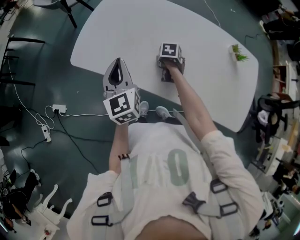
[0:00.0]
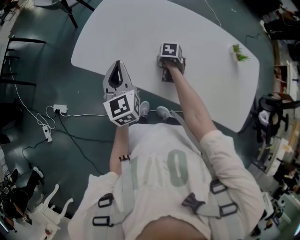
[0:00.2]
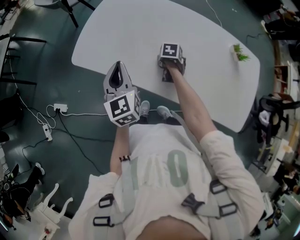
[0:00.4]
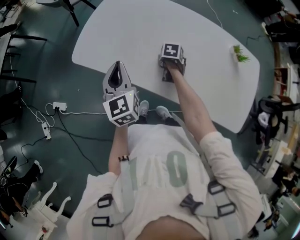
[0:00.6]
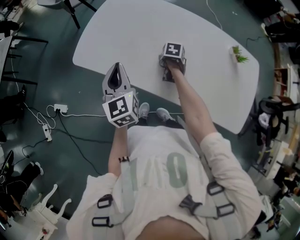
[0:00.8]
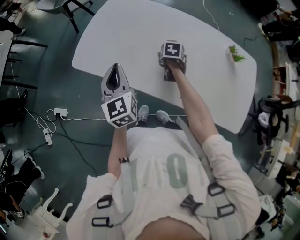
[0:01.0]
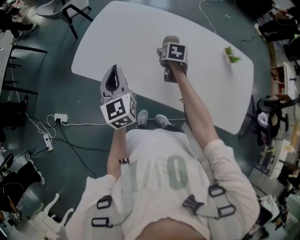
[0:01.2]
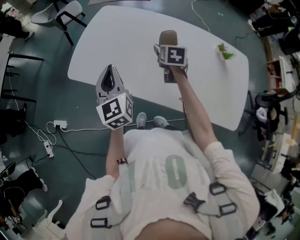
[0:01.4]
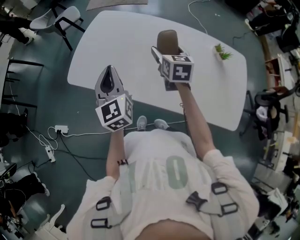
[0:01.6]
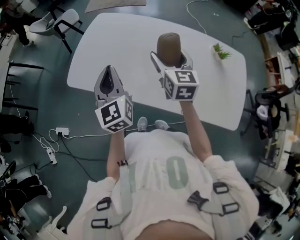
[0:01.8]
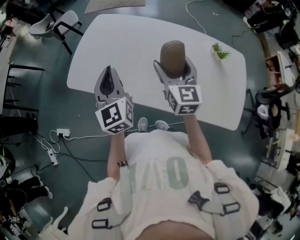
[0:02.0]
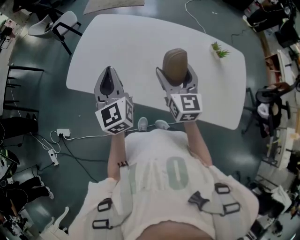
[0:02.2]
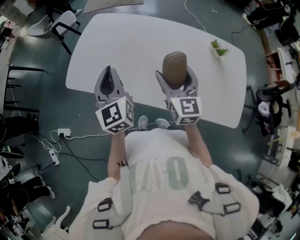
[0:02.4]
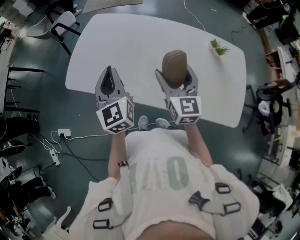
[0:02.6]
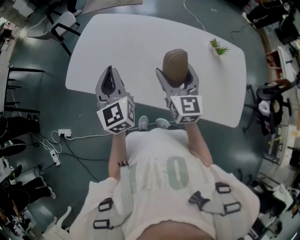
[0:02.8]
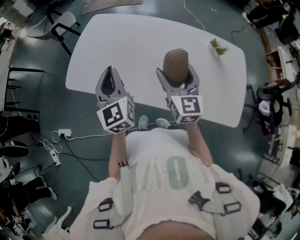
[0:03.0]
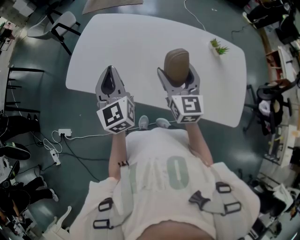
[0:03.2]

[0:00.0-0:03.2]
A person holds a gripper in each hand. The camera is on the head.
0.0 to 1.6 s: The right gripper is displaced upward by roughly 25 cm, and tips its fingers upward by about 50 degrees. The left gripper moves upward, approximately 5 cm.
1.6 to 3.2 s: The right gripper travels backward and upward by approximately 15 cm, and swivels some 20 degrees.

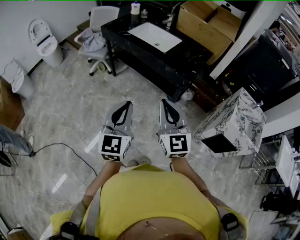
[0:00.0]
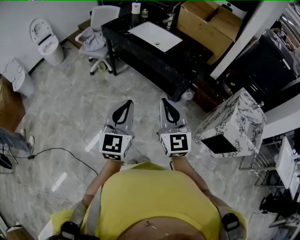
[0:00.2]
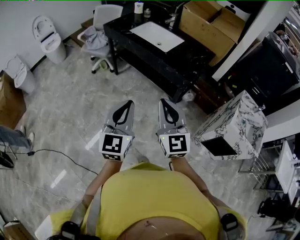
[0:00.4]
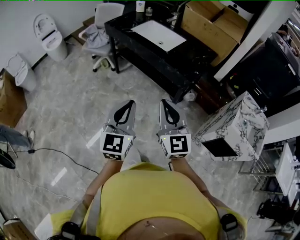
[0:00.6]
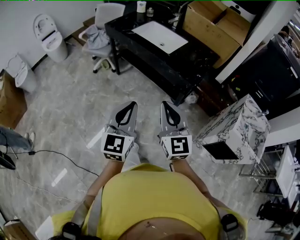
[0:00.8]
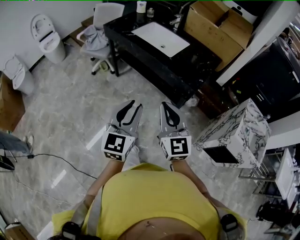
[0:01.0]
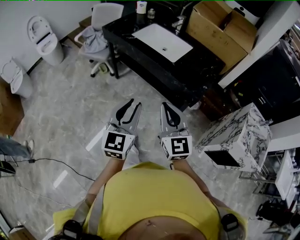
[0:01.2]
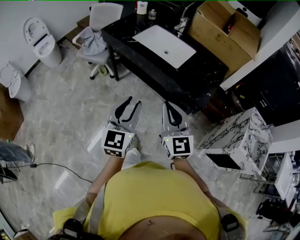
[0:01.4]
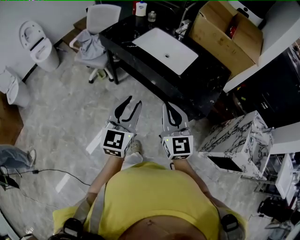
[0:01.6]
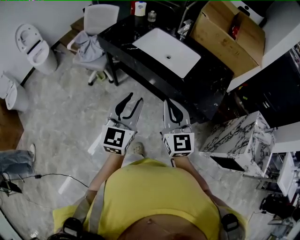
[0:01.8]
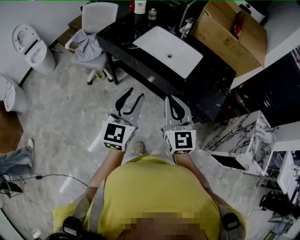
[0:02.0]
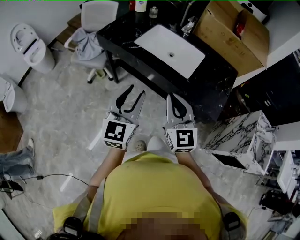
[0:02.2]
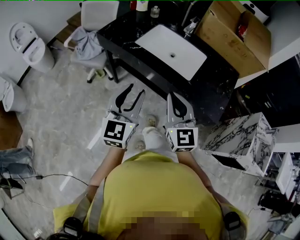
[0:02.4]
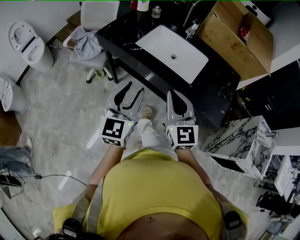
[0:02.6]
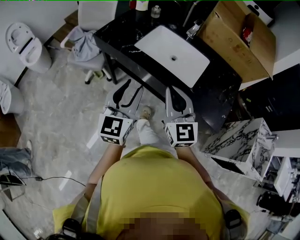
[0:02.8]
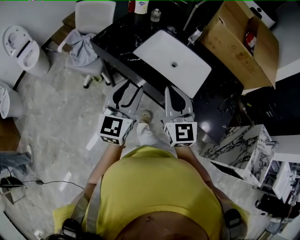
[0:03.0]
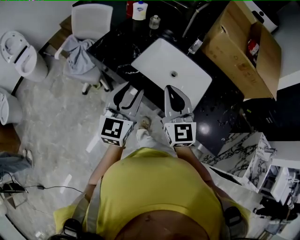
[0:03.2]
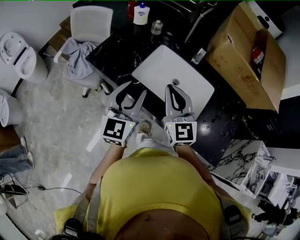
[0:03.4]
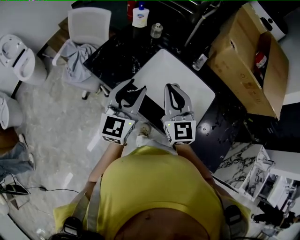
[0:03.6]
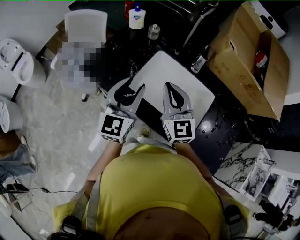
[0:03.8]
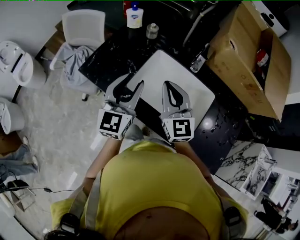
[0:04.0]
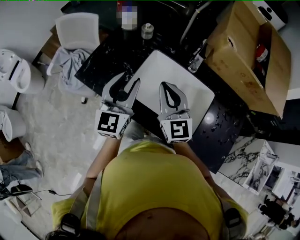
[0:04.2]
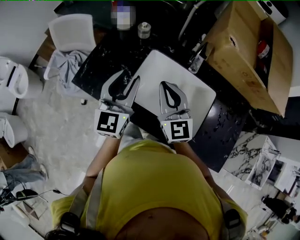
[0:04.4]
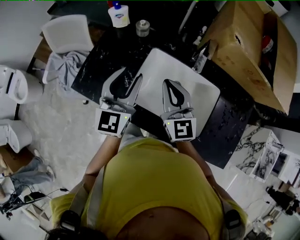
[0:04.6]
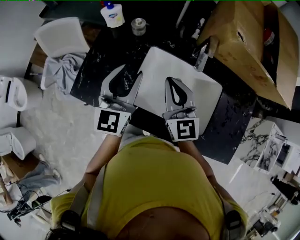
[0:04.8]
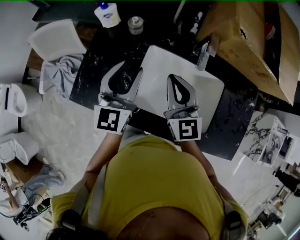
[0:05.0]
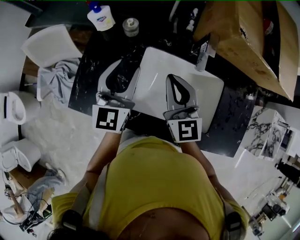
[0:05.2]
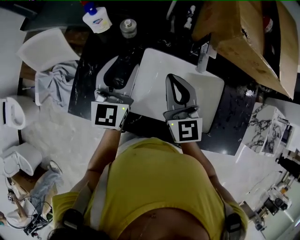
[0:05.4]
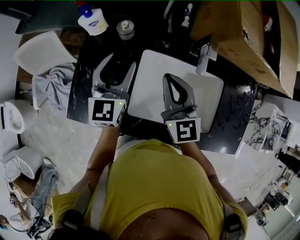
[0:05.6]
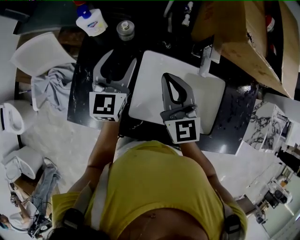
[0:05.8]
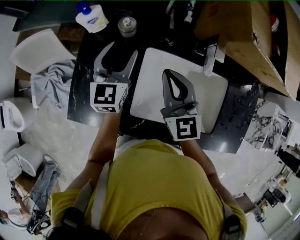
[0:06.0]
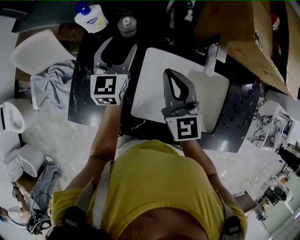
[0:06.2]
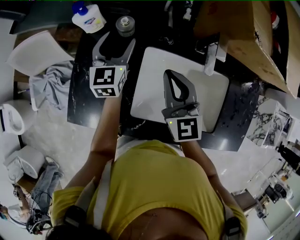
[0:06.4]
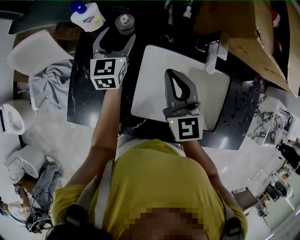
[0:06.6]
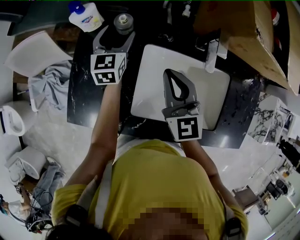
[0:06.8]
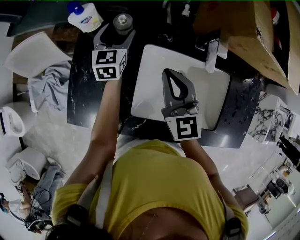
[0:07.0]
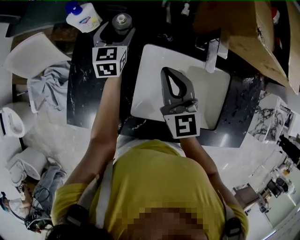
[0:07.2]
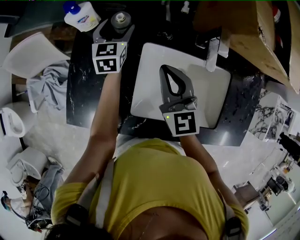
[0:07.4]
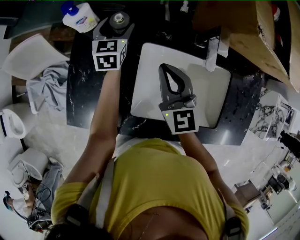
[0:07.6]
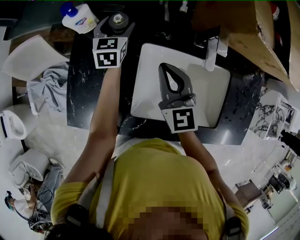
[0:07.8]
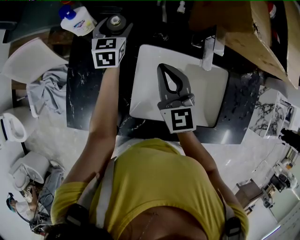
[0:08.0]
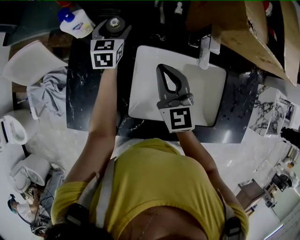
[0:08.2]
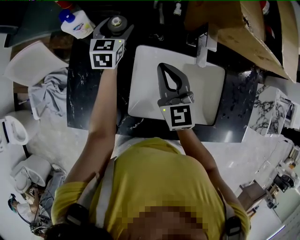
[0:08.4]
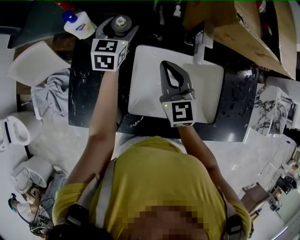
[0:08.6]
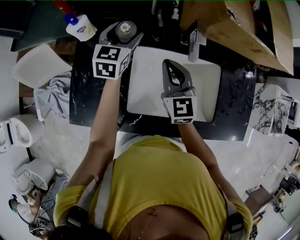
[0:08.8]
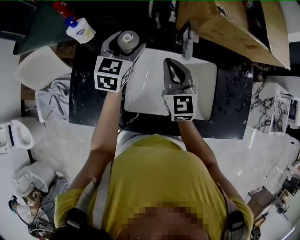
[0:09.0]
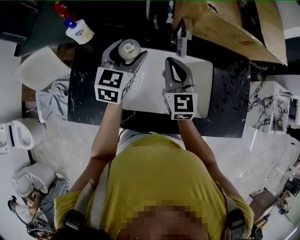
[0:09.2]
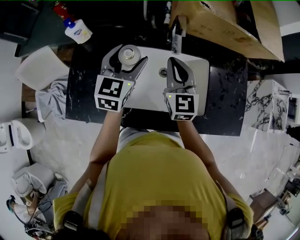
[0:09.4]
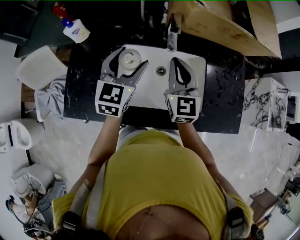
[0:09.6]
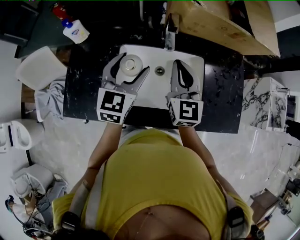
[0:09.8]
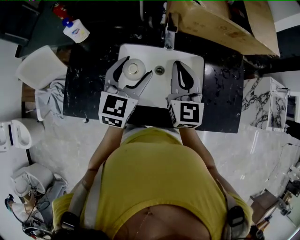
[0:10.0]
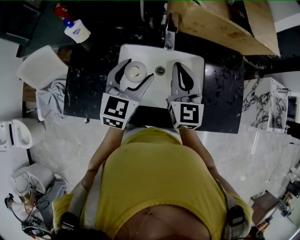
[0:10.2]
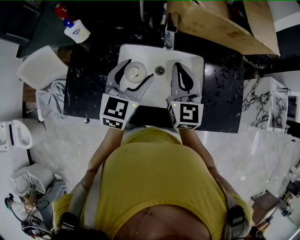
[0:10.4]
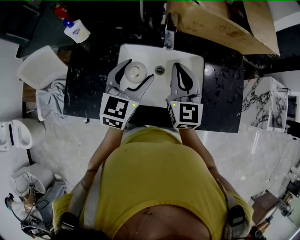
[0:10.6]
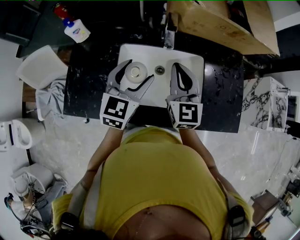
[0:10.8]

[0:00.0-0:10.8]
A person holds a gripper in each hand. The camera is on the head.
0.0 to 1.6 s: Both grippers travel together forward, some 30 cm. The left gripper opens.
1.6 to 3.0 s: The grippers both shift forward by about 25 cm.
3.0 to 4.6 s: The grippers both shift forward by roughly 35 cm.
4.6 to 6.2 s: The left gripper travels forward and downward by approximately 25 cm. The right gripper travels forward by roughly 10 cm.
6.2 to 7.8 s: The left gripper shifts about 15 cm forward and downward.
7.8 to 9.2 s: The right gripper shifts some 10 cm to the right, while the left gripper moves backward, upward and to the right, roughly 25 cm.
9.2 to 10.8 s: The right gripper moves to the right and backward, roughly 10 cm, while the left gripper is displaced backward and to the right by approximately 15 cm.

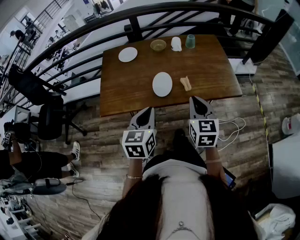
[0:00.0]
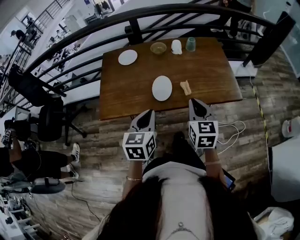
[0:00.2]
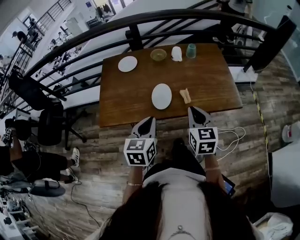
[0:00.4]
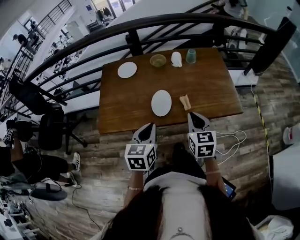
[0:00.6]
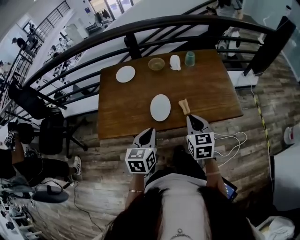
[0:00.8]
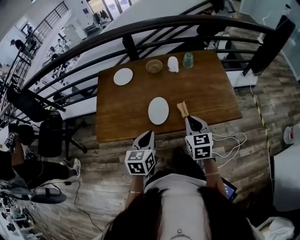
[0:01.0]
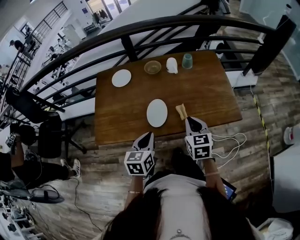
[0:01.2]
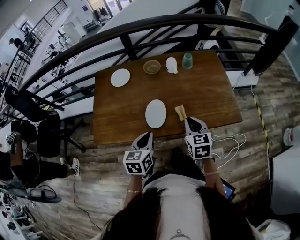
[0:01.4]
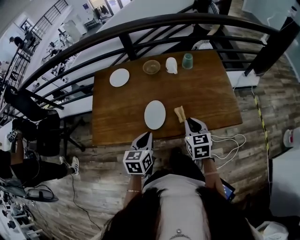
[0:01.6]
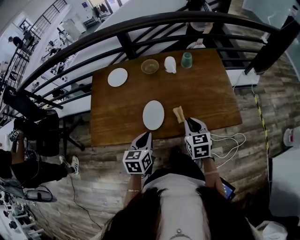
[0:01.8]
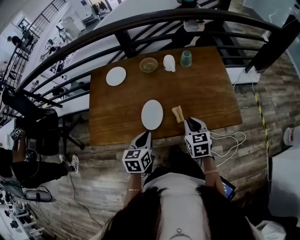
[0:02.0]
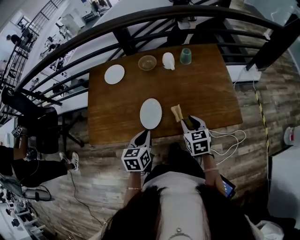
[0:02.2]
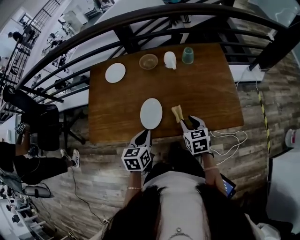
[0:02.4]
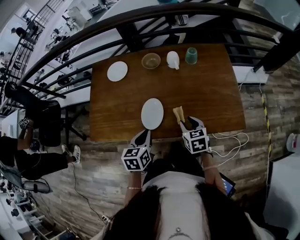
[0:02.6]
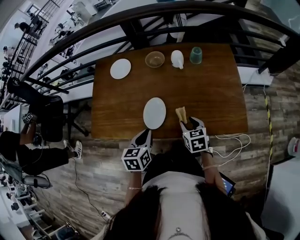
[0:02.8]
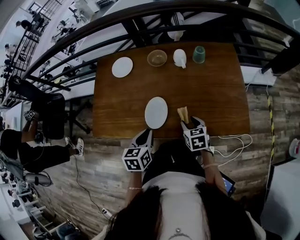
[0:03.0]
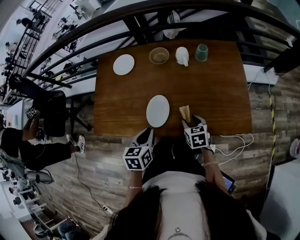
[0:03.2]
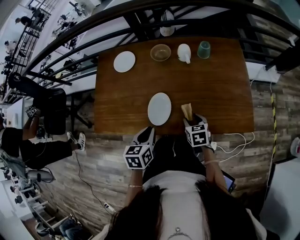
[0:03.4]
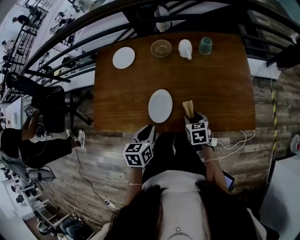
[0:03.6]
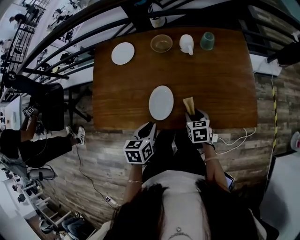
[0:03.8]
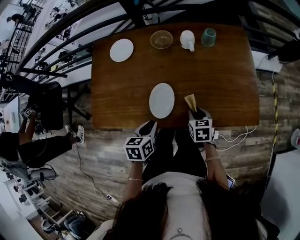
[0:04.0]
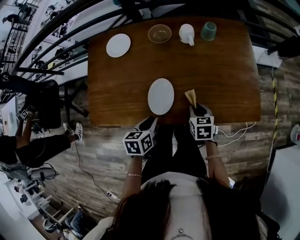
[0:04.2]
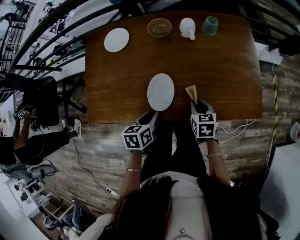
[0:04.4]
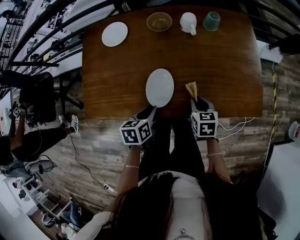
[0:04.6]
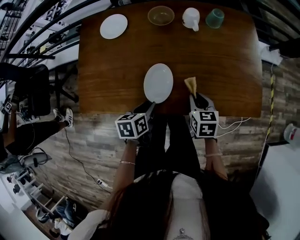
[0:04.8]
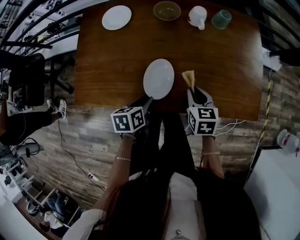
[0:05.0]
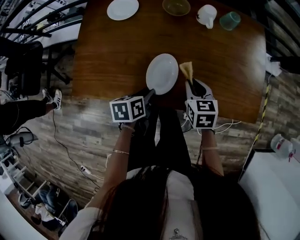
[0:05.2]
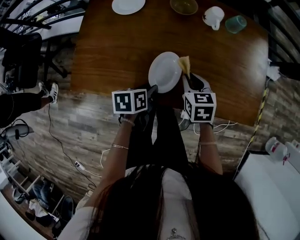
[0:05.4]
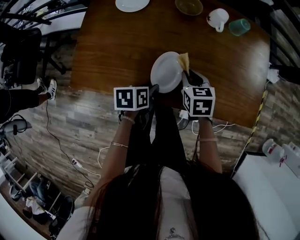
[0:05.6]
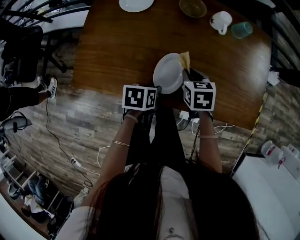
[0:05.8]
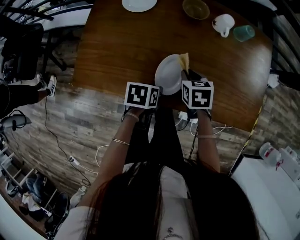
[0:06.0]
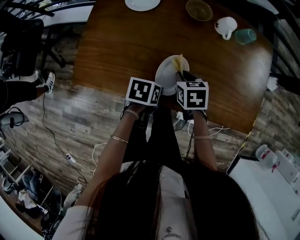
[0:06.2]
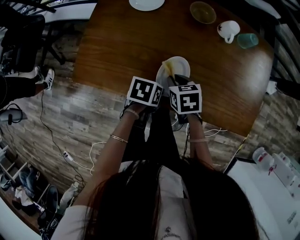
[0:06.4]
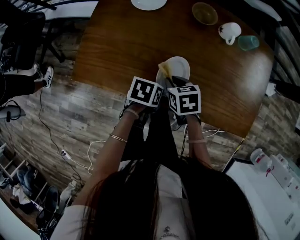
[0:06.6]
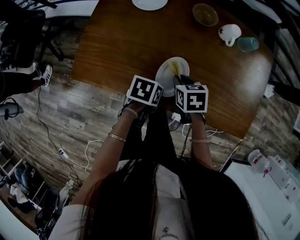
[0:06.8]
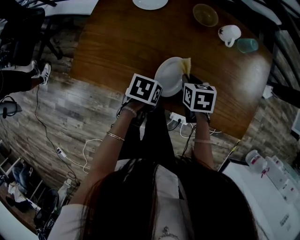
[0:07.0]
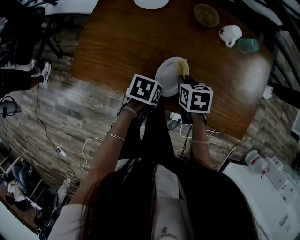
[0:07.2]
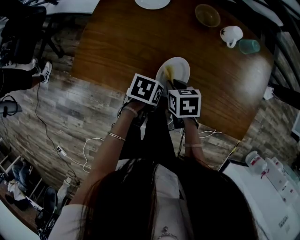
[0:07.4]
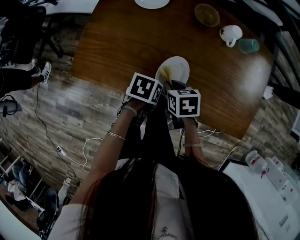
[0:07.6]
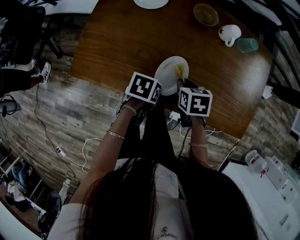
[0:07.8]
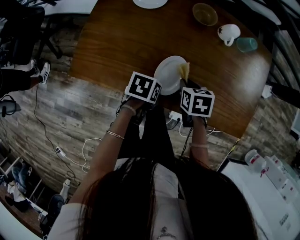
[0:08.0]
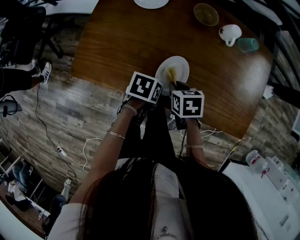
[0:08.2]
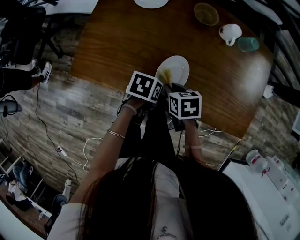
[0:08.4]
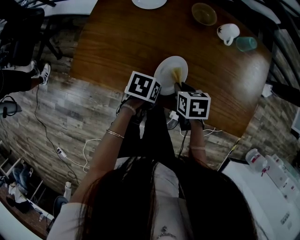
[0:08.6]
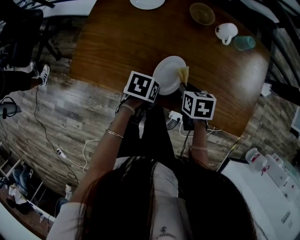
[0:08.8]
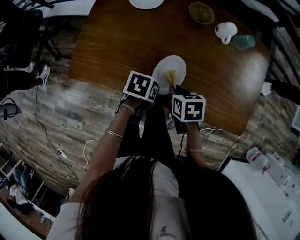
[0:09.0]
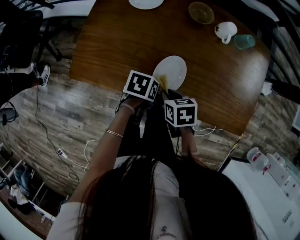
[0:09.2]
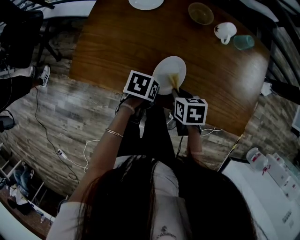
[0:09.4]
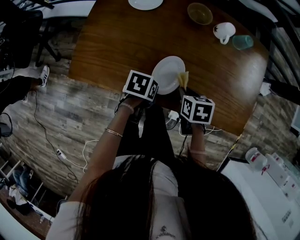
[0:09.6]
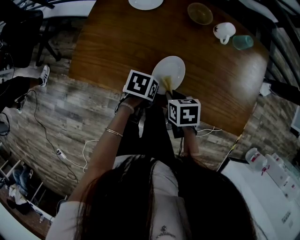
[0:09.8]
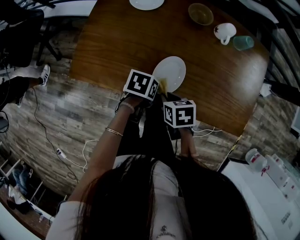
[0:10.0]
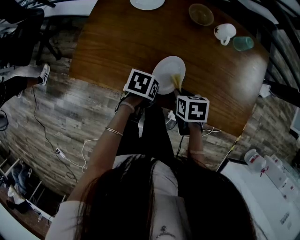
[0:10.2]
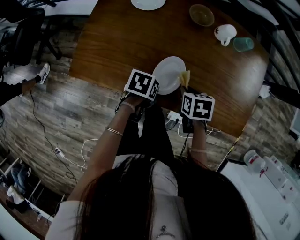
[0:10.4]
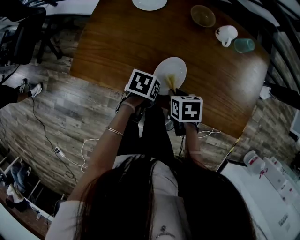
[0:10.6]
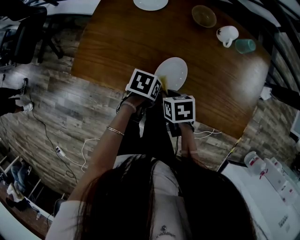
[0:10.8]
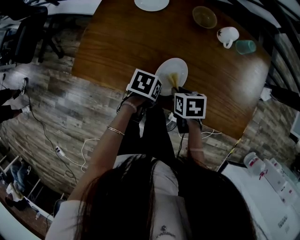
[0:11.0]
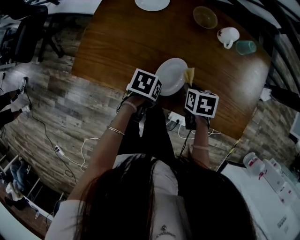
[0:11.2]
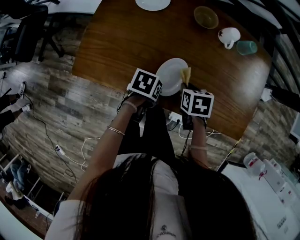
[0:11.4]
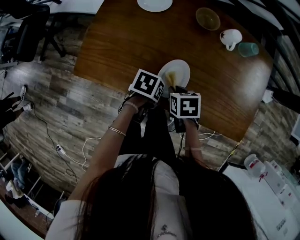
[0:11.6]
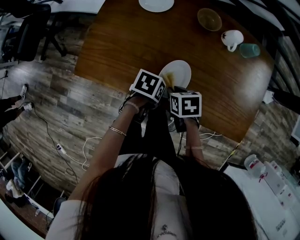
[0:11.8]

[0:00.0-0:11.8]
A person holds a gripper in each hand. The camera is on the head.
0.0 to 1.4 s: Both grippers travel together forward and downward, approximately 15 cm.
1.4 to 3.0 s: The left gripper moves some 5 cm. The right gripper travels downward and forward by some 15 cm, swivels about 20 degrees, and opens its fingers.
3.0 to 4.4 s: The left gripper shifts some 10 cm downward; the right gripper closes.
4.4 to 6.0 s: The right gripper is displaced to the left and forward by about 10 cm.
6.0 to 7.4 s: The right gripper goes left and right, approximately 5 cm each way, reversing 2 times.
7.4 to 8.8 s: The right gripper swings left and right, approximately 5 cm each way, with 2 reversals.
10.4 to 11.8 s: The right gripper ends up roughly 10 cm from where it was.
